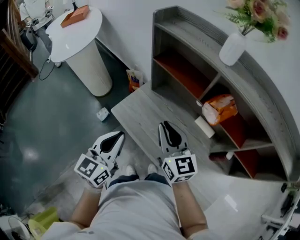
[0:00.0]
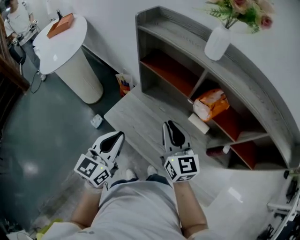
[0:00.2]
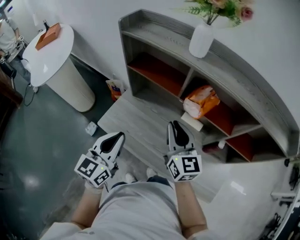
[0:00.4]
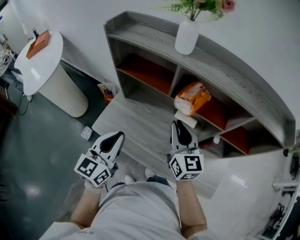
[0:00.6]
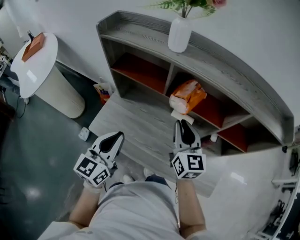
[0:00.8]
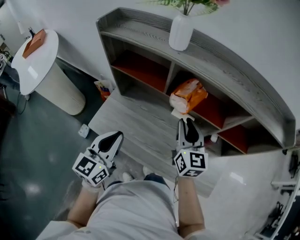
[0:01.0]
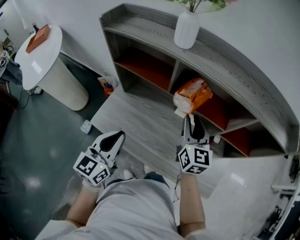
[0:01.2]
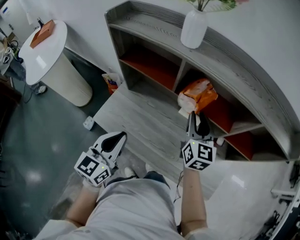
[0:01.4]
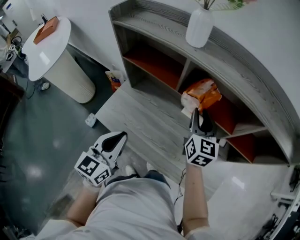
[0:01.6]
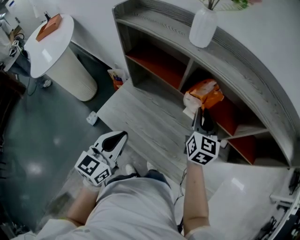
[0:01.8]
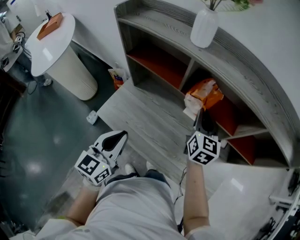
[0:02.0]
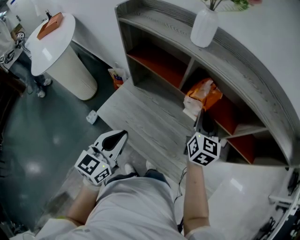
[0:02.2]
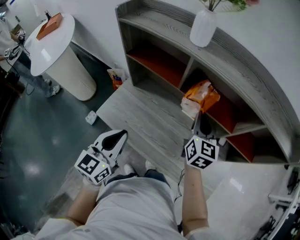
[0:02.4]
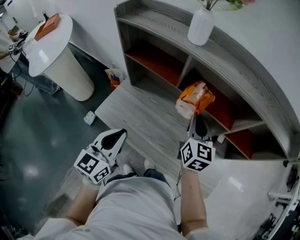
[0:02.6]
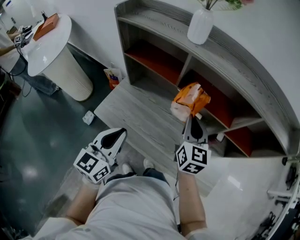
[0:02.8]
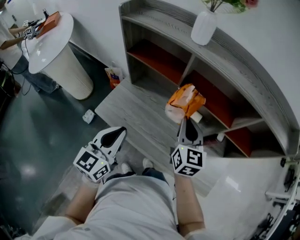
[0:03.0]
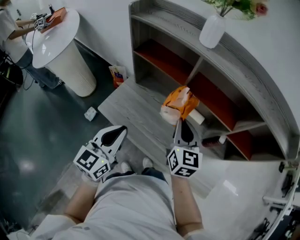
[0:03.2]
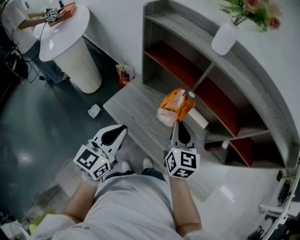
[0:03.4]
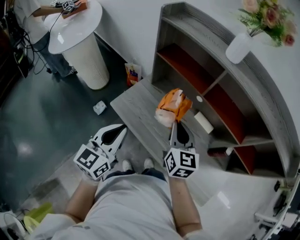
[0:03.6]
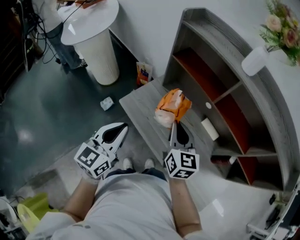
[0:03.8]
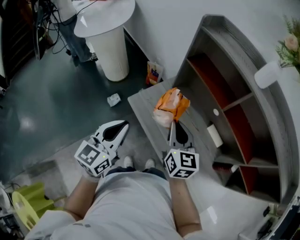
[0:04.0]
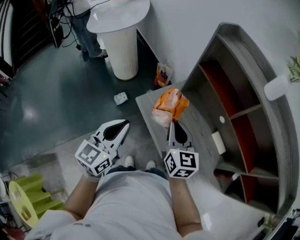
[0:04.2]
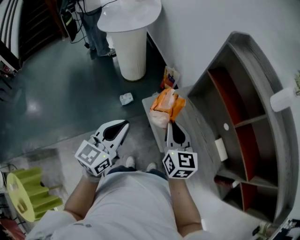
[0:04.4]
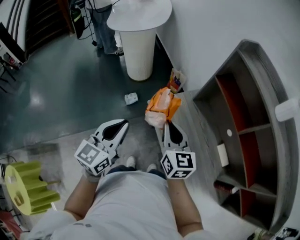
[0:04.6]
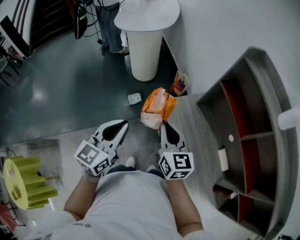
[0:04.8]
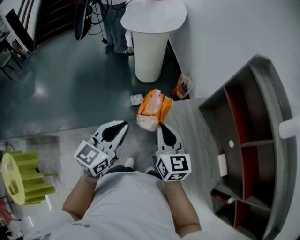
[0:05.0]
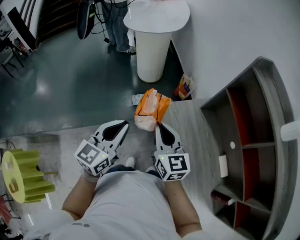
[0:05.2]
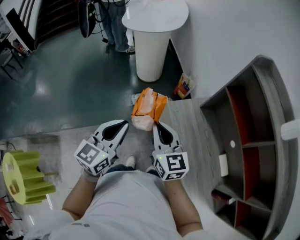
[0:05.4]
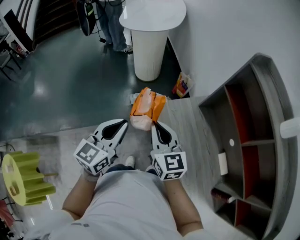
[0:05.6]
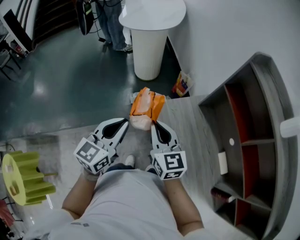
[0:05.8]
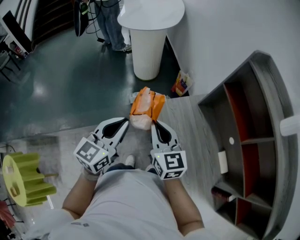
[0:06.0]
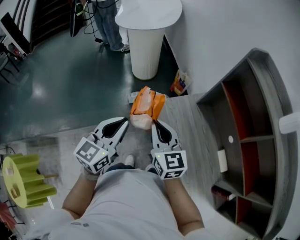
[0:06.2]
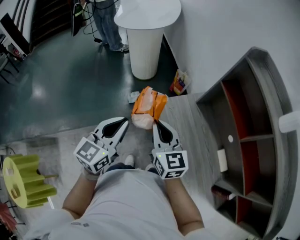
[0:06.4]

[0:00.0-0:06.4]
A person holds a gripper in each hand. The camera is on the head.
0:00.0 to 0:01.6: The left gripper ends up approximately 10 cm from where it was. The right gripper shifts by roughly 25 cm, and changes its angle by about 40 degrees.
0:01.6 to 0:03.2: The right gripper moves backward and to the left, roughly 10 cm, and closes.
0:03.2 to 0:04.8: The right gripper moves approximately 30 cm, and turns by roughly 50 degrees, while the left gripper moves about 20 cm, and changes its angle by roughly 30 degrees.

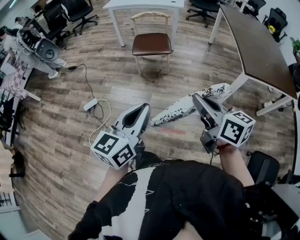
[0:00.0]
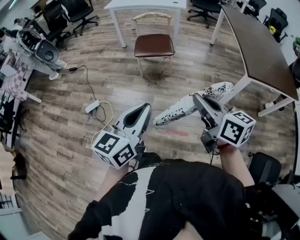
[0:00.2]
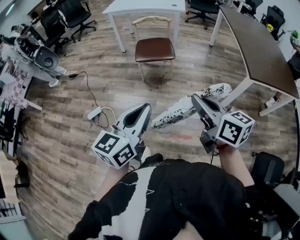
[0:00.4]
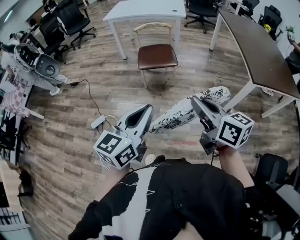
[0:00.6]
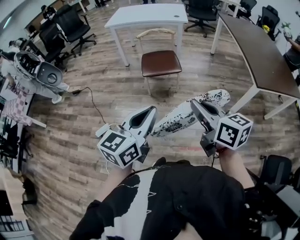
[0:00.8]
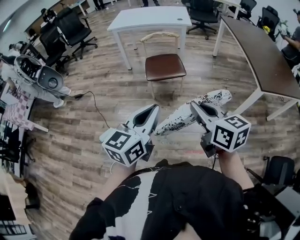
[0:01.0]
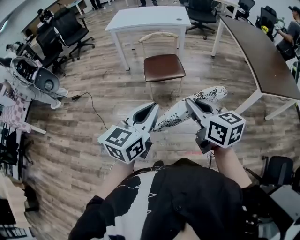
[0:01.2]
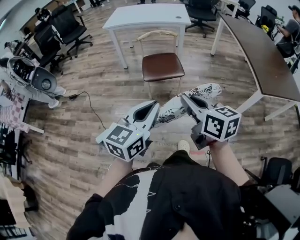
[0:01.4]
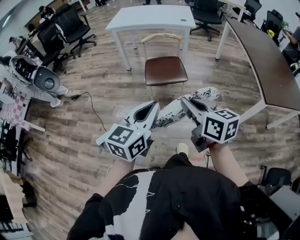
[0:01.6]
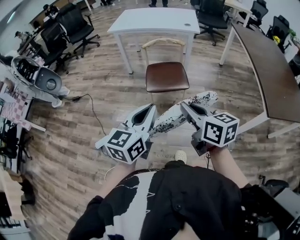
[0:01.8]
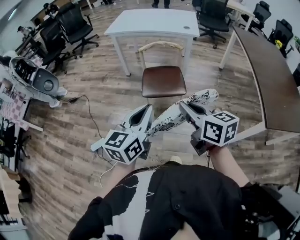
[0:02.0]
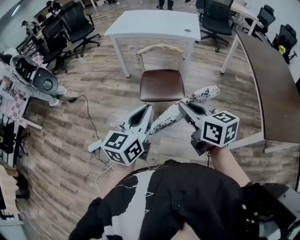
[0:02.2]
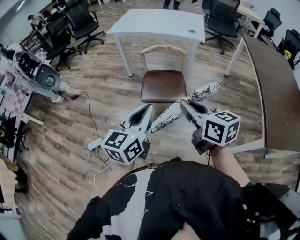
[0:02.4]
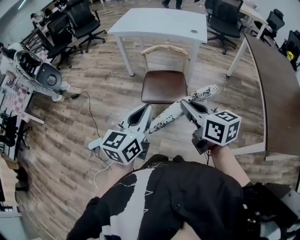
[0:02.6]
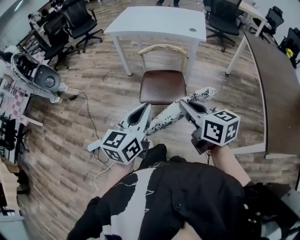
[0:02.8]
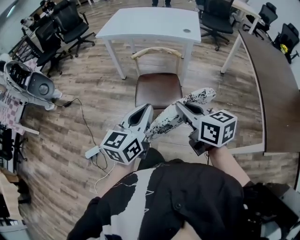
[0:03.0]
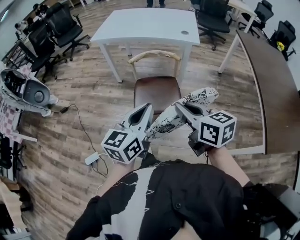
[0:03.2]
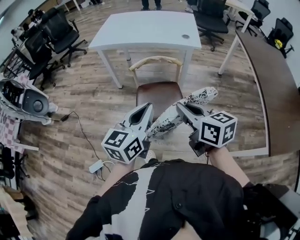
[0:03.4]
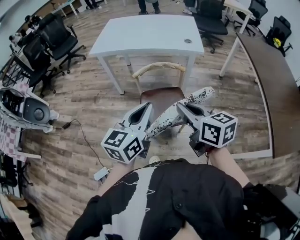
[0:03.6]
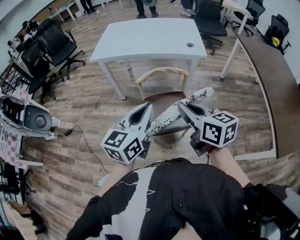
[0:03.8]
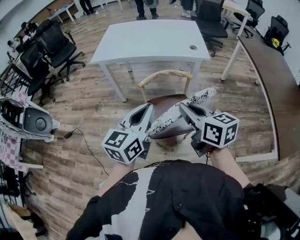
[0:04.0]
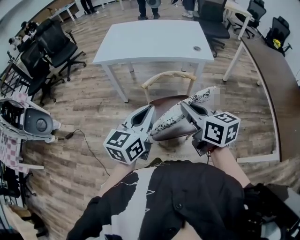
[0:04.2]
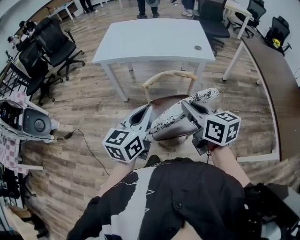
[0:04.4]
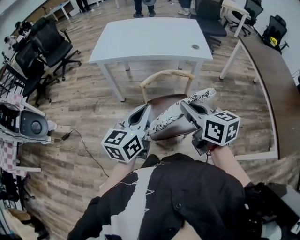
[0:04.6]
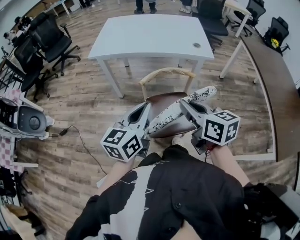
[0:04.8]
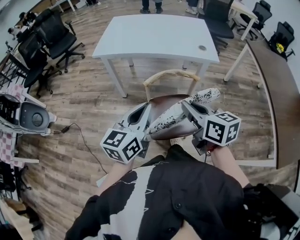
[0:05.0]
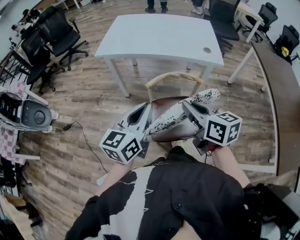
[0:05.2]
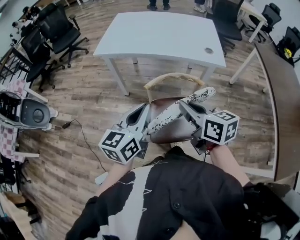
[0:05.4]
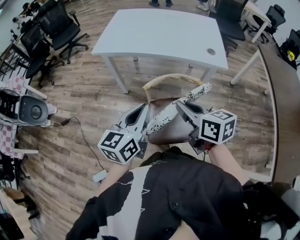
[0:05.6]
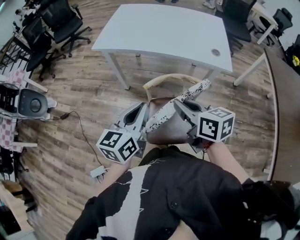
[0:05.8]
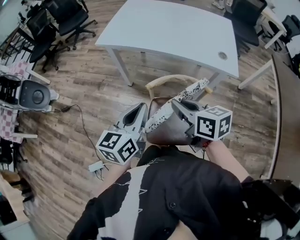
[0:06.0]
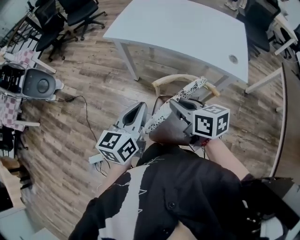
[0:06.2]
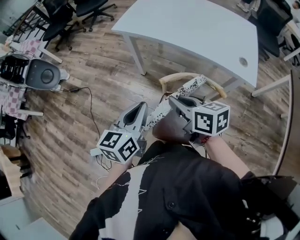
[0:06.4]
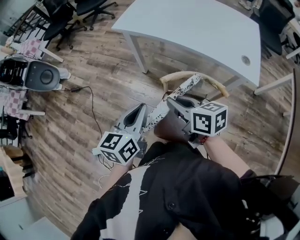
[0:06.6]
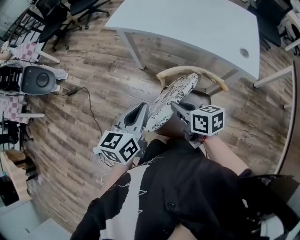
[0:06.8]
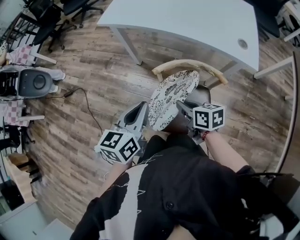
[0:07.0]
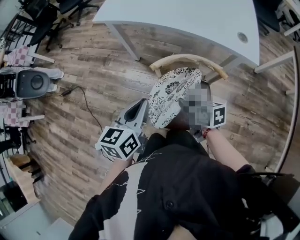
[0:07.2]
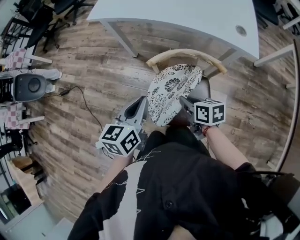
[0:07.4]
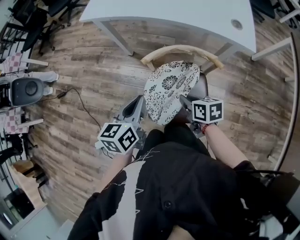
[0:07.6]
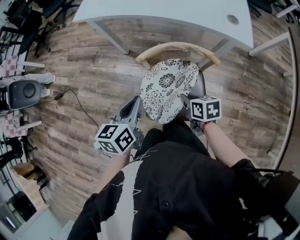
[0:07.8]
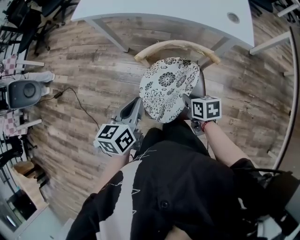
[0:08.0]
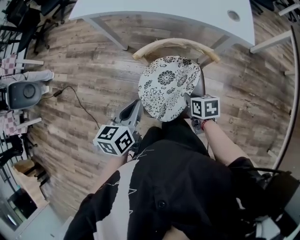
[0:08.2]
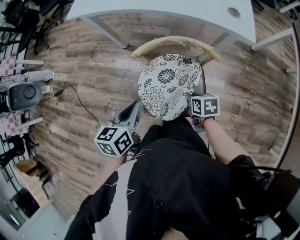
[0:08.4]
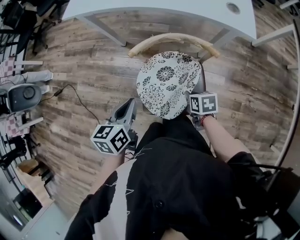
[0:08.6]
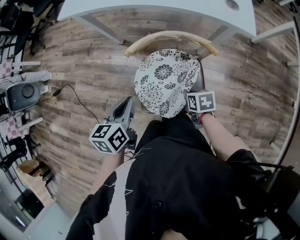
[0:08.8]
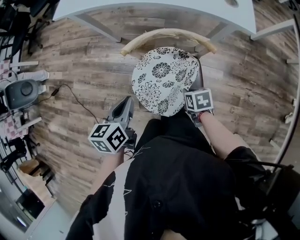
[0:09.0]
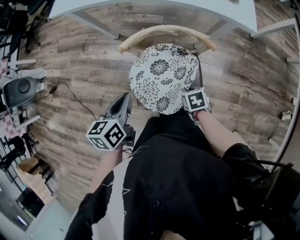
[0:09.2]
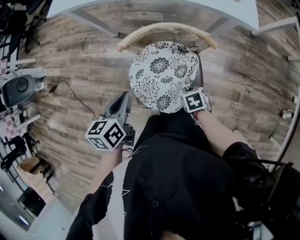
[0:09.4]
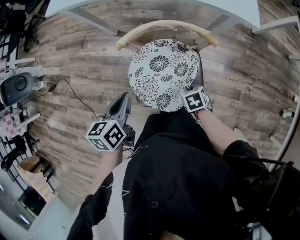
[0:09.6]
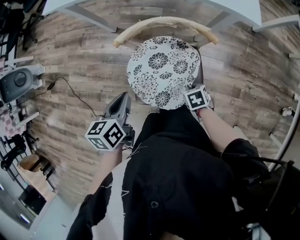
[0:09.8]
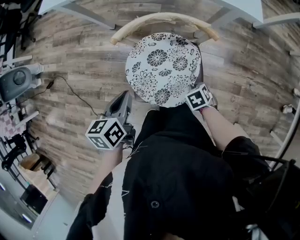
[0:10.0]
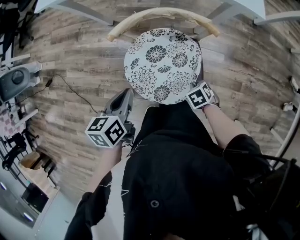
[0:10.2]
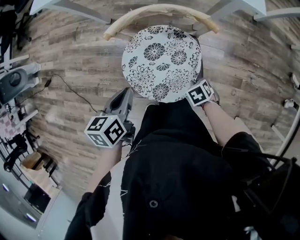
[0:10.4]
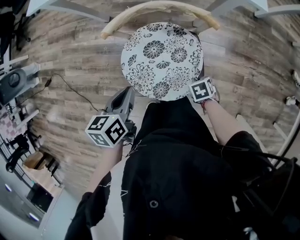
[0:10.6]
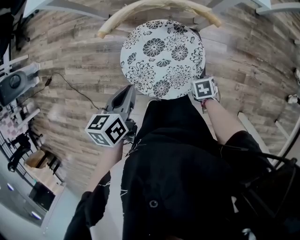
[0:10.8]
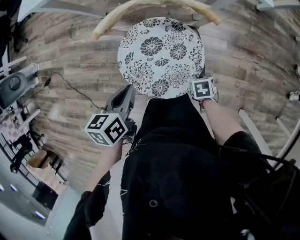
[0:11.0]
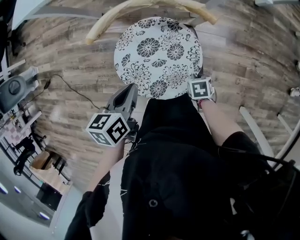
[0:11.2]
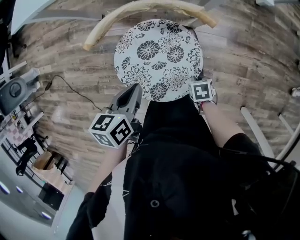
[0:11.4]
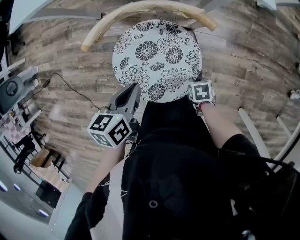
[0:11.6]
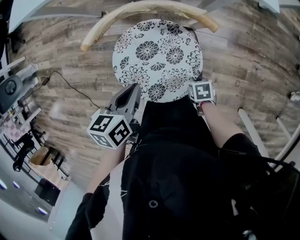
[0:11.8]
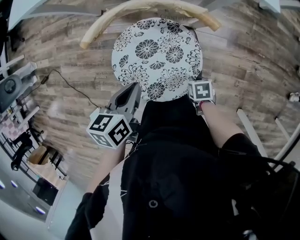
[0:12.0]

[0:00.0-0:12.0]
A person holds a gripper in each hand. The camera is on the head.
0:00.0 to 0:01.6: The two grippers go approximately 30 cm forward and to the left.
0:01.6 to 0:03.0: The two grippers go approximately 30 cm forward and to the right.
0:03.0 to 0:04.4: Both grippers travel together forward and to the left, about 25 cm.
0:04.4 to 0:06.0: The right gripper heads forward and downward, covering approximately 15 cm, and rotates roughly 20 degrees. The left gripper travels forward by some 10 cm.
0:06.0 to 0:07.6: The left gripper is displaced downward by about 15 cm. Meanwhile the right gripper heads downward, covering roughly 25 cm, and swivels roughly 20 degrees.
0:07.6 to 0:09.0: The right gripper moves downward and to the right, about 15 cm, and swivels roughly 20 degrees. The left gripper moves downward, approximately 5 cm.
0:09.0 to 0:10.4: The right gripper goes roughly 10 cm downward, and swivels approximately 30 degrees. Meanwhile the left gripper travels downward by approximately 5 cm.
0:10.4 to 0:12.0: The left gripper changes place by approximately 10 cm. The right gripper is displaced downward by roughly 5 cm, and turns by some 30 degrees.

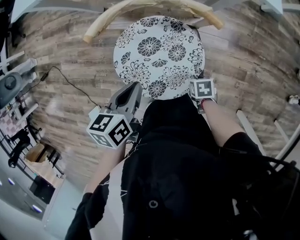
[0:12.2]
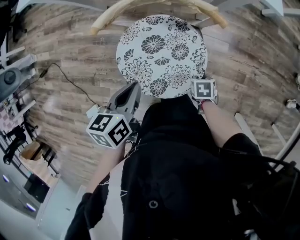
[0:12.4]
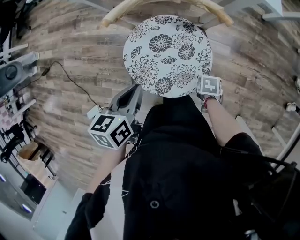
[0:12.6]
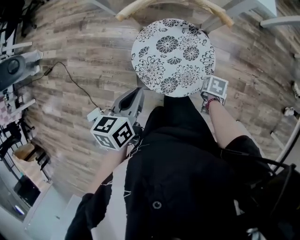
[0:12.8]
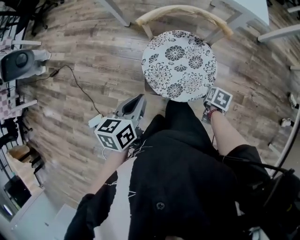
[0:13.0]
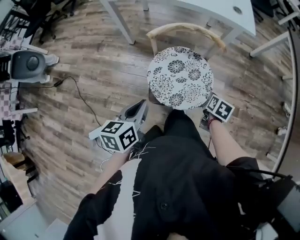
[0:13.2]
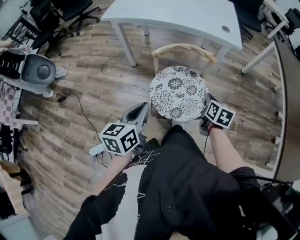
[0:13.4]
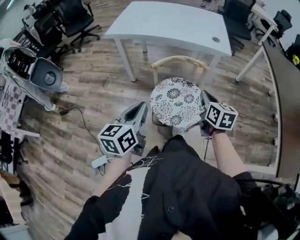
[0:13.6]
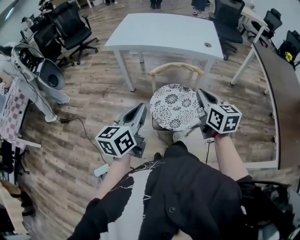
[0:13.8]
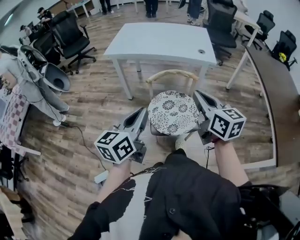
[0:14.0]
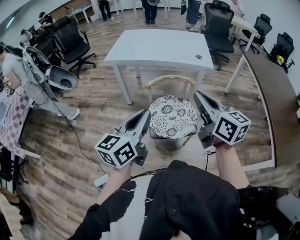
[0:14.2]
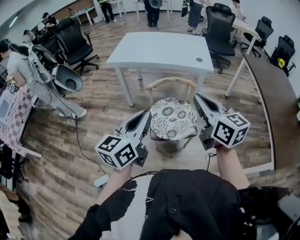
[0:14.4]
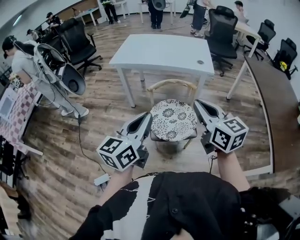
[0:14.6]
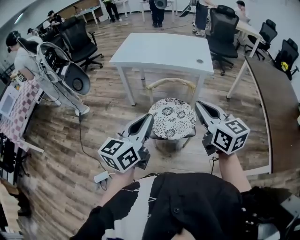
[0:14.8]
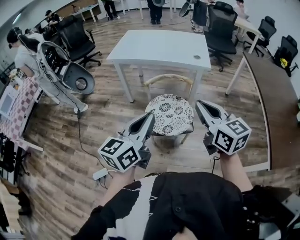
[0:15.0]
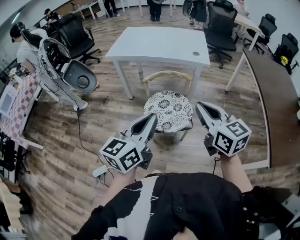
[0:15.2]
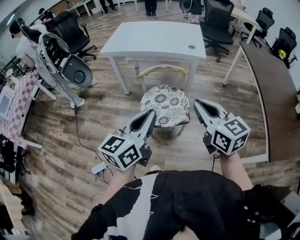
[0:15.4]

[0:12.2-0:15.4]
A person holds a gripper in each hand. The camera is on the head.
0:12.2 to 0:13.8: The left gripper heads upward, covering some 30 cm, and tips its fingers upward by about 40 degrees, while the right gripper is displaced upward by some 50 cm, tilts its fingers about 60 degrees upward, and opens and closes again.
0:13.8 to 0:15.4: The right gripper heads backward, upward and to the right, covering roughly 20 cm; the left gripper heads to the right, backward and upward, covering approximately 20 cm.

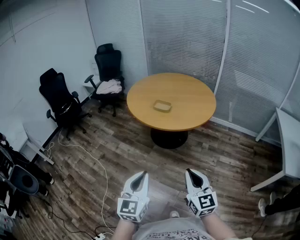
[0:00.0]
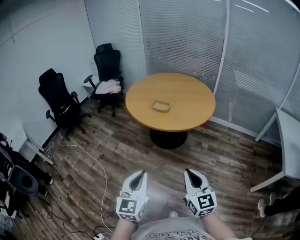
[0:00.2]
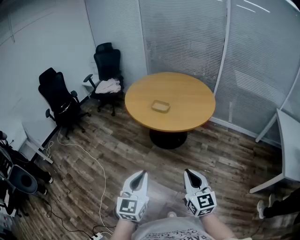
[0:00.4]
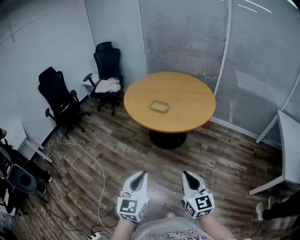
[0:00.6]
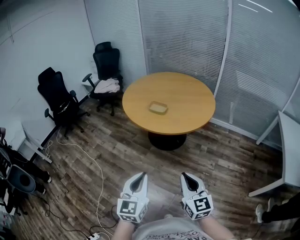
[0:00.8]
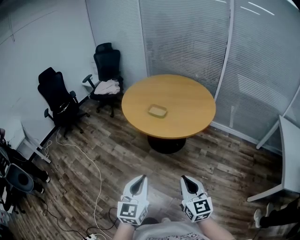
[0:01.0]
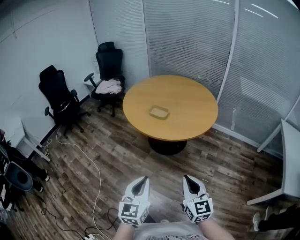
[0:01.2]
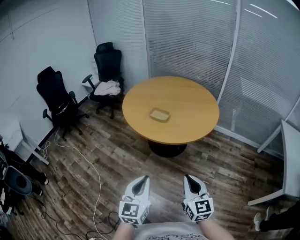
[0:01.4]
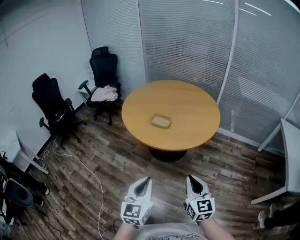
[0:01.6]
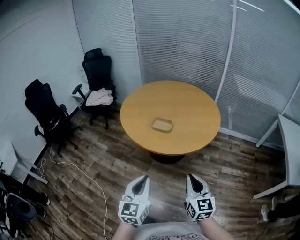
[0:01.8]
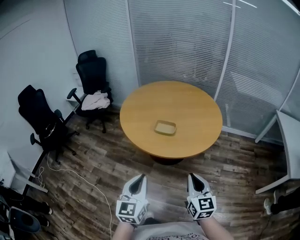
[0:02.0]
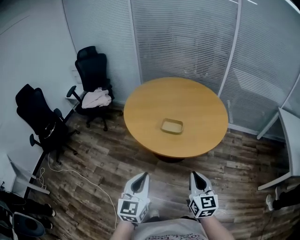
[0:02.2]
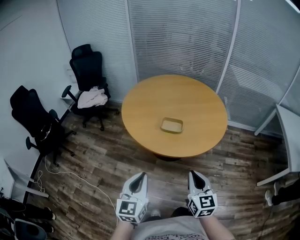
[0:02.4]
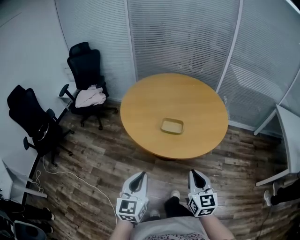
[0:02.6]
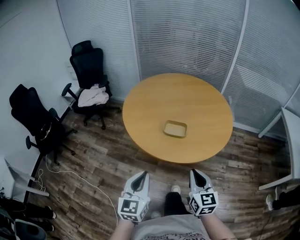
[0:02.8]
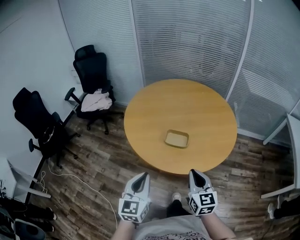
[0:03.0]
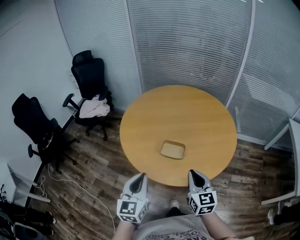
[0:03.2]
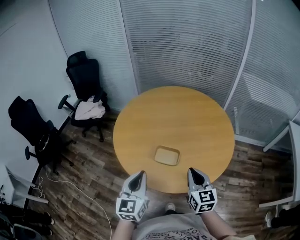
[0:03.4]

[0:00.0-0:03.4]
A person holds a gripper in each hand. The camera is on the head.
0:00.0 to 0:01.6: The grippers both shift forward by roughly 15 cm.
0:01.6 to 0:03.4: Both grippers are carried forward, some 40 cm.
